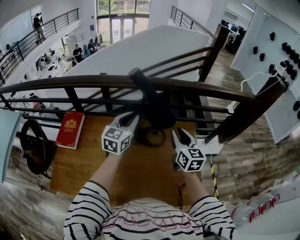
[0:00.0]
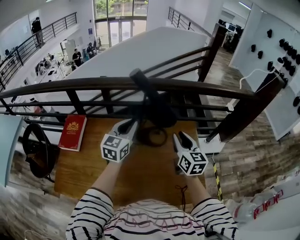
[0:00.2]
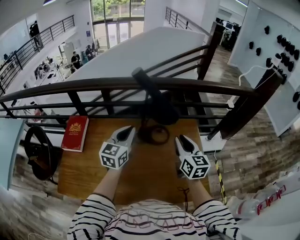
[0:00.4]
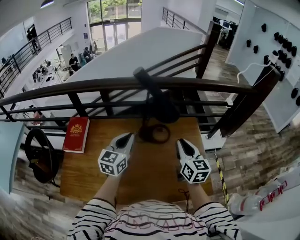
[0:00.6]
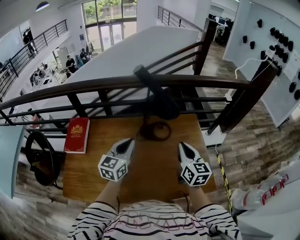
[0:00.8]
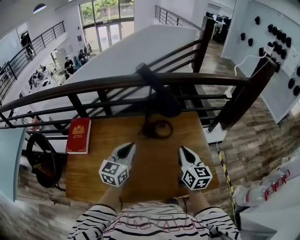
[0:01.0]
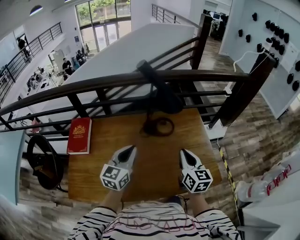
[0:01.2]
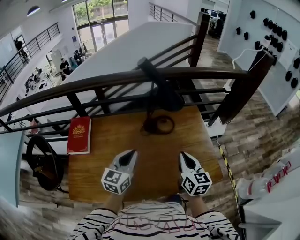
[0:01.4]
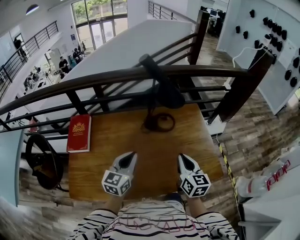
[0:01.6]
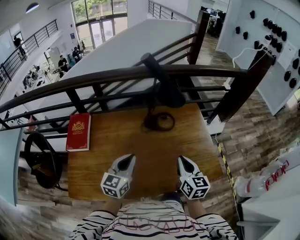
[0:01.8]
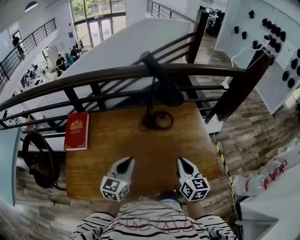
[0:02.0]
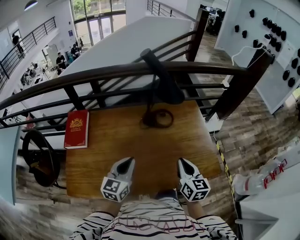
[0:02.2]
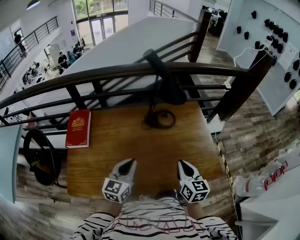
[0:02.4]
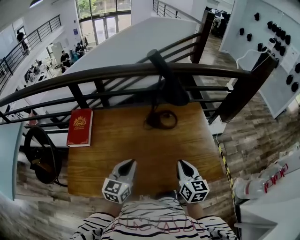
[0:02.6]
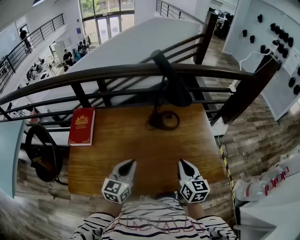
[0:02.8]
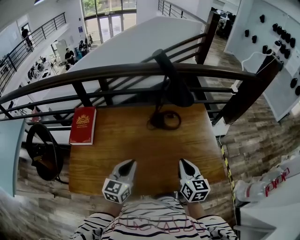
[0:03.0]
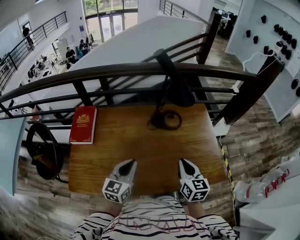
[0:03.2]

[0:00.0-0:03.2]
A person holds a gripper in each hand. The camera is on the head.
0:00.0 to 0:01.6: Both grippers move backward, some 25 cm. The right gripper closes up.
0:01.6 to 0:03.2: The left gripper moves approximately 5 cm.

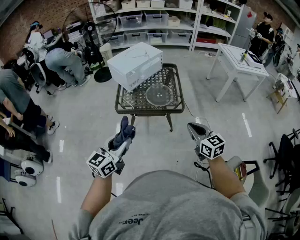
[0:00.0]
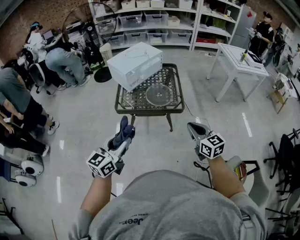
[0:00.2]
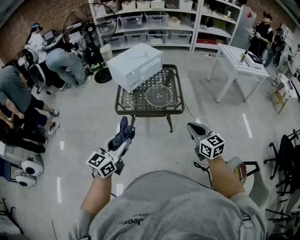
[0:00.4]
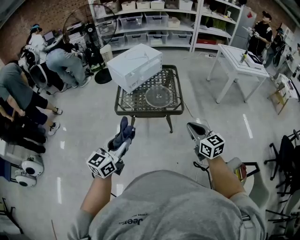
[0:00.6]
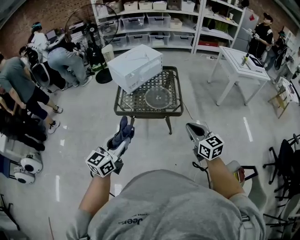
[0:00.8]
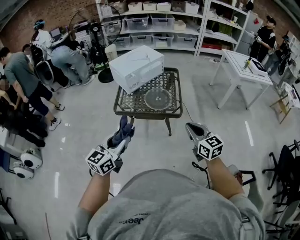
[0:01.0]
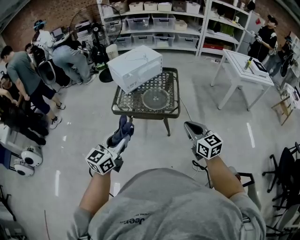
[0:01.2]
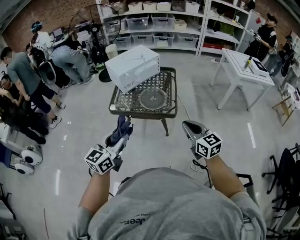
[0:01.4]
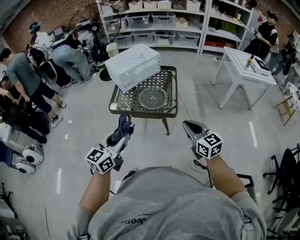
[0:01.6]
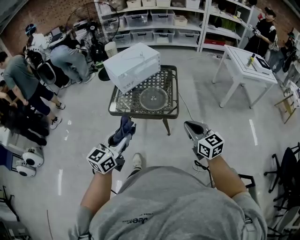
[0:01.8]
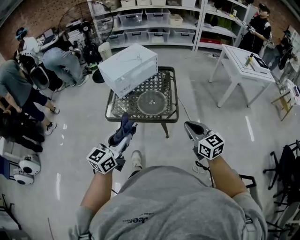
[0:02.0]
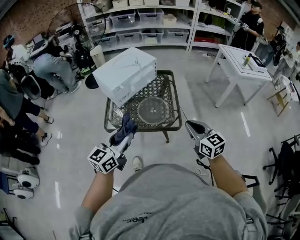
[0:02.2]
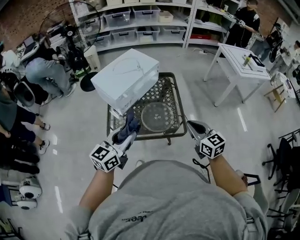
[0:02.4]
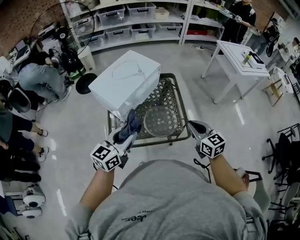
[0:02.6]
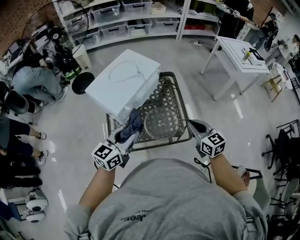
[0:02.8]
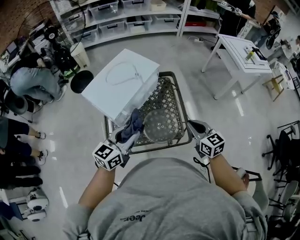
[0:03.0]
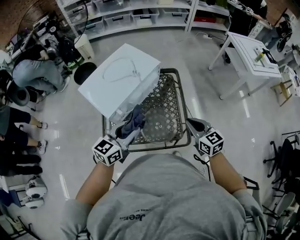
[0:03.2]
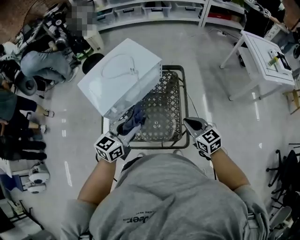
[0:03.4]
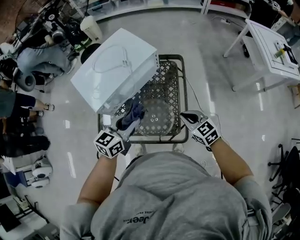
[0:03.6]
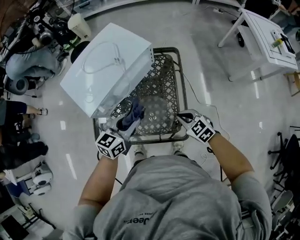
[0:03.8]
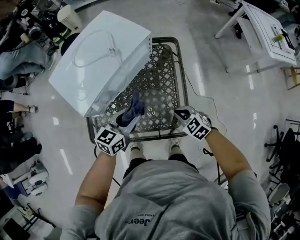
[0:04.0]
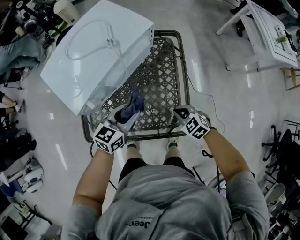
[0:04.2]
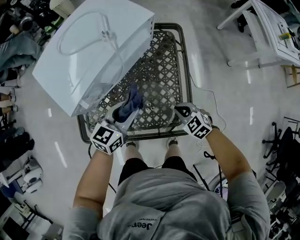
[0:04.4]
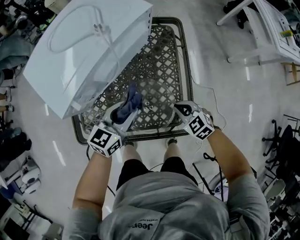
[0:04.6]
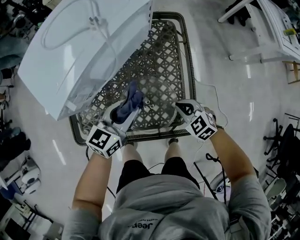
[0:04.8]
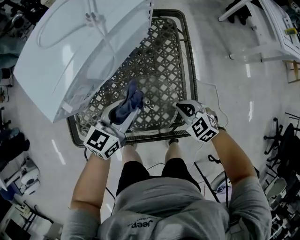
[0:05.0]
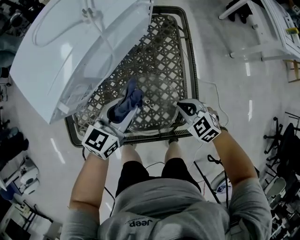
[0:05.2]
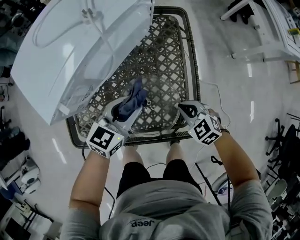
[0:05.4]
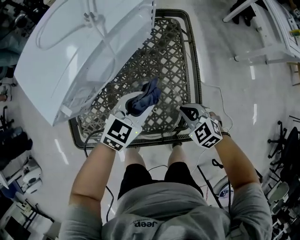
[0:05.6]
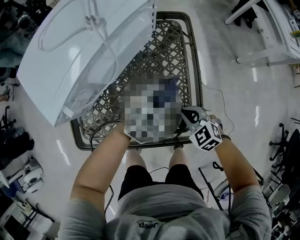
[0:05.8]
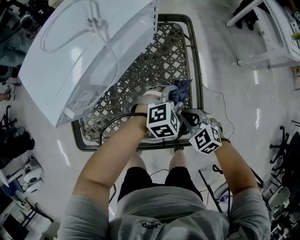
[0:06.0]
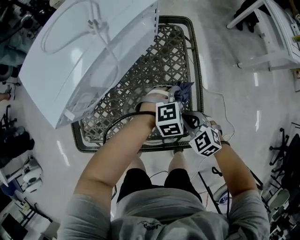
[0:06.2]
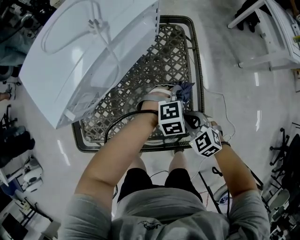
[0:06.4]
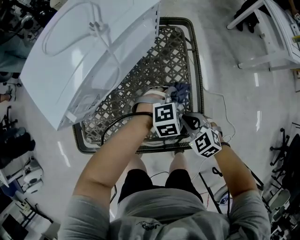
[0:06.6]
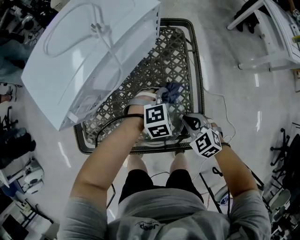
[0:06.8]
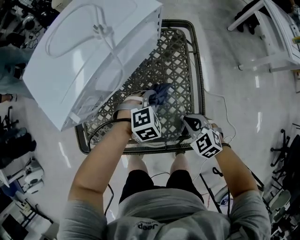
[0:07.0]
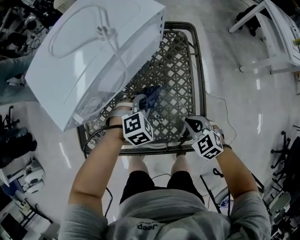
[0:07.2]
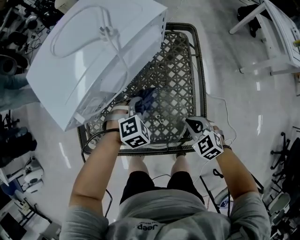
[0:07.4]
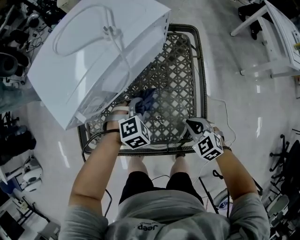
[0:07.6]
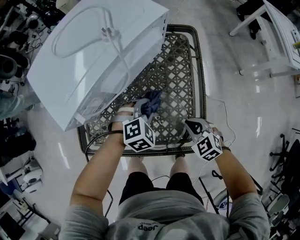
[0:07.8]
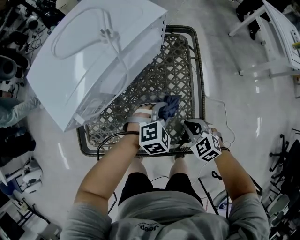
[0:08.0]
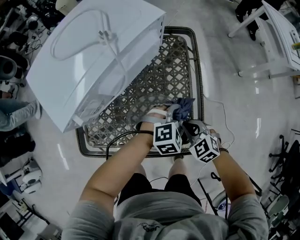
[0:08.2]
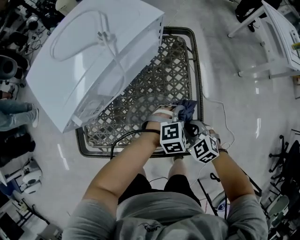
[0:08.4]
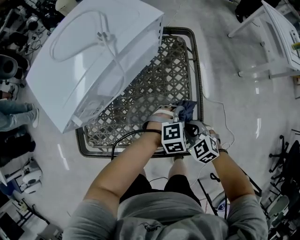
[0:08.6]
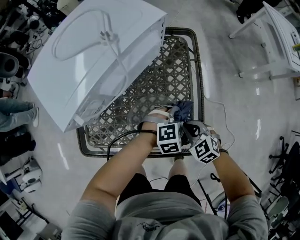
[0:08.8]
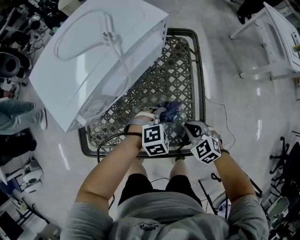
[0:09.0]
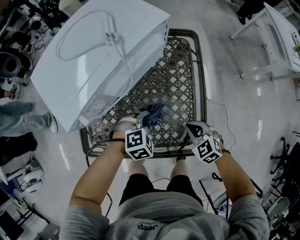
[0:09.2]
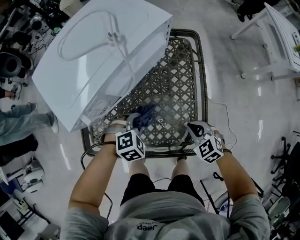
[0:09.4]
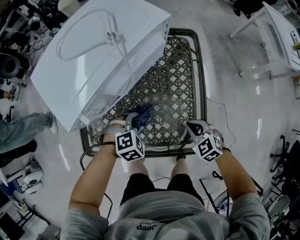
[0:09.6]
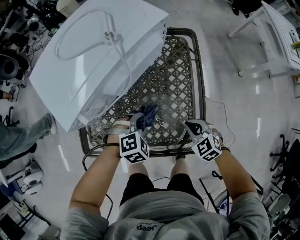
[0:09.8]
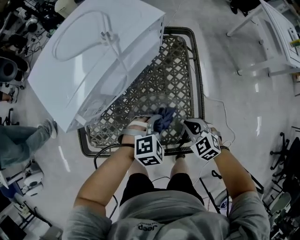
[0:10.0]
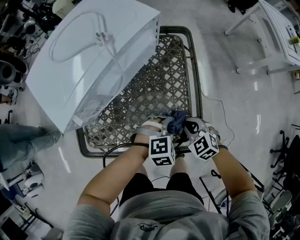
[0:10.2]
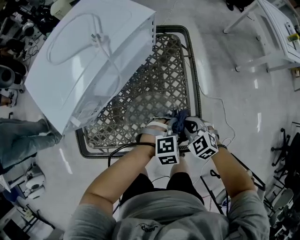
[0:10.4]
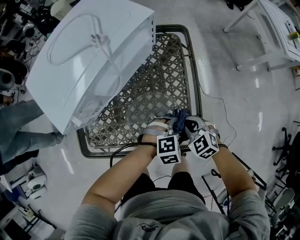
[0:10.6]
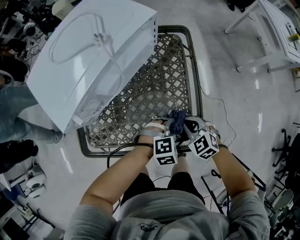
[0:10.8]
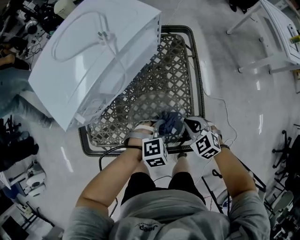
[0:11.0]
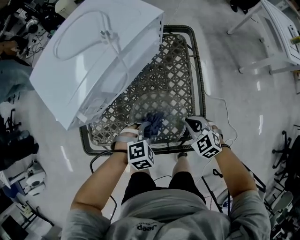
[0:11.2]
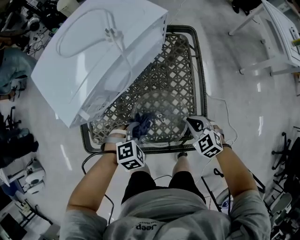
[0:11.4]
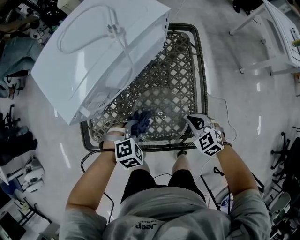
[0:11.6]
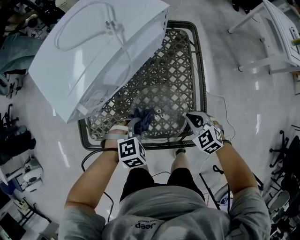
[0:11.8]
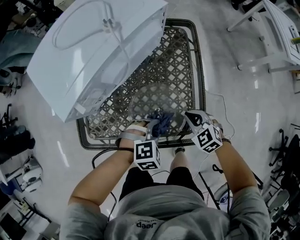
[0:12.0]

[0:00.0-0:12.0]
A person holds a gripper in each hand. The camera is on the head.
0:00.0 to 0:01.6: The grippers both shift to the right by approximately 10 cm.
0:01.6 to 0:03.0: Both grippers move forward, about 35 cm. The left gripper rotates about 20 degrees.
0:03.0 to 0:04.4: The right gripper is displaced downward by some 30 cm, and swivels about 50 degrees, while the left gripper heads downward and to the right, covering some 25 cm.
0:04.4 to 0:06.0: The left gripper goes approximately 20 cm to the right and downward, and rotates around the line of its fingers by approximately 50 degrees, clockwise from behind.
0:06.0 to 0:07.6: The left gripper heads to the left, covering roughly 15 cm, and turns by roughly 20 degrees.
0:07.6 to 0:09.0: The left gripper travels to the right by approximately 10 cm.
0:09.0 to 0:10.4: The left gripper travels backward by about 5 cm, and goes to the left and returns, roughly 10 cm each way.
0:10.4 to 0:12.0: The left gripper moves to the left, roughly 10 cm.

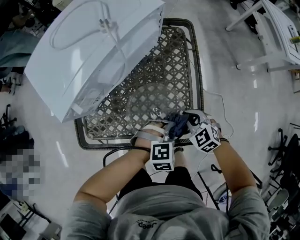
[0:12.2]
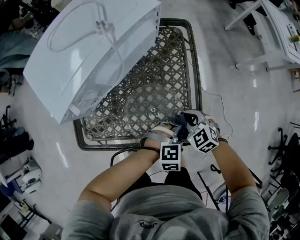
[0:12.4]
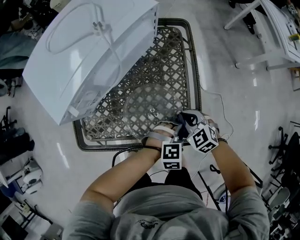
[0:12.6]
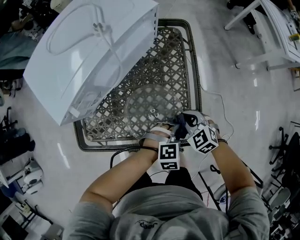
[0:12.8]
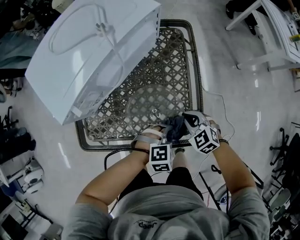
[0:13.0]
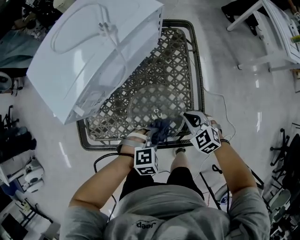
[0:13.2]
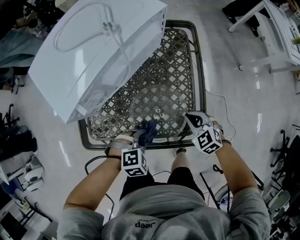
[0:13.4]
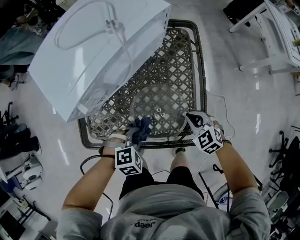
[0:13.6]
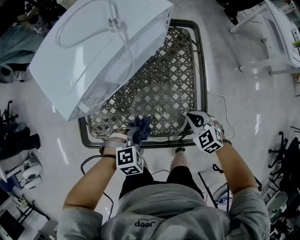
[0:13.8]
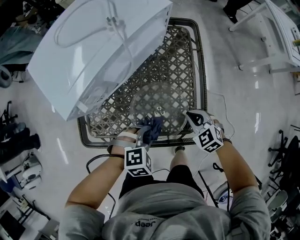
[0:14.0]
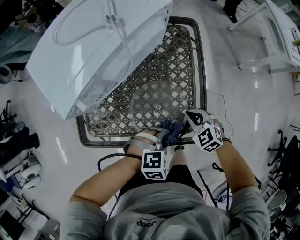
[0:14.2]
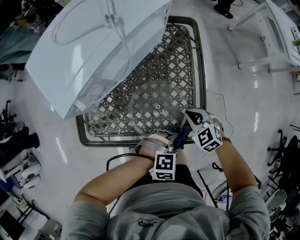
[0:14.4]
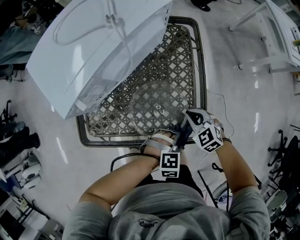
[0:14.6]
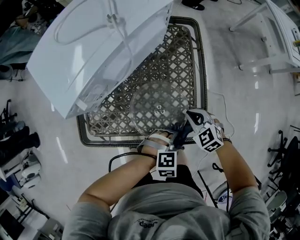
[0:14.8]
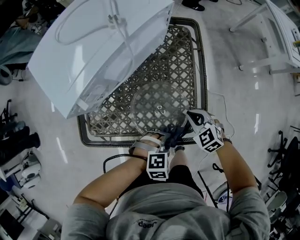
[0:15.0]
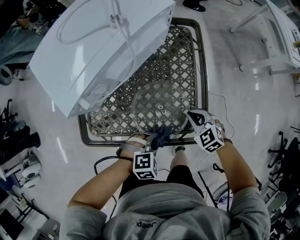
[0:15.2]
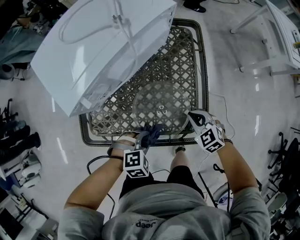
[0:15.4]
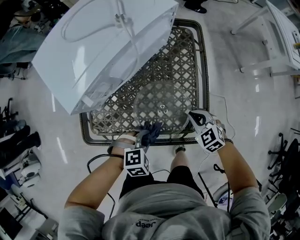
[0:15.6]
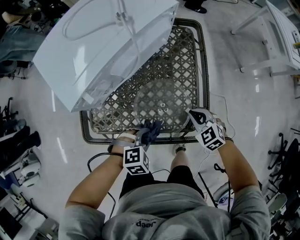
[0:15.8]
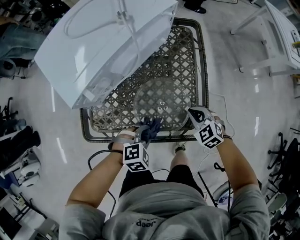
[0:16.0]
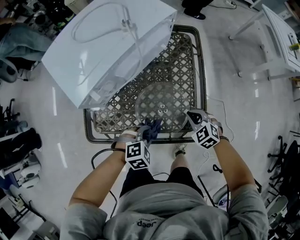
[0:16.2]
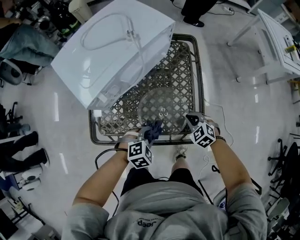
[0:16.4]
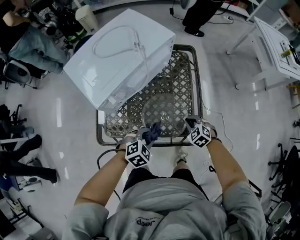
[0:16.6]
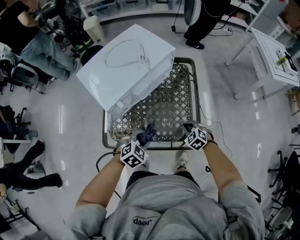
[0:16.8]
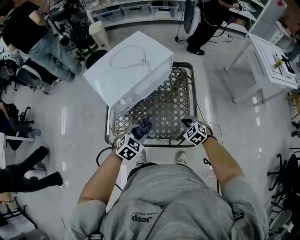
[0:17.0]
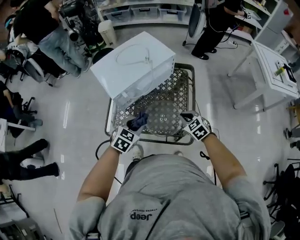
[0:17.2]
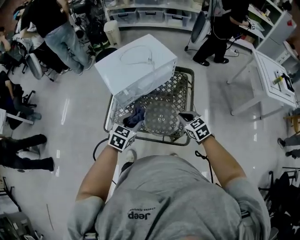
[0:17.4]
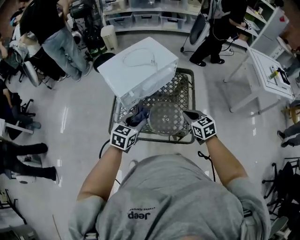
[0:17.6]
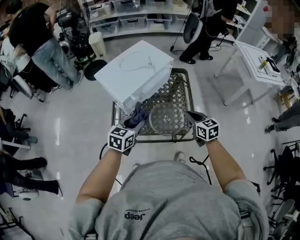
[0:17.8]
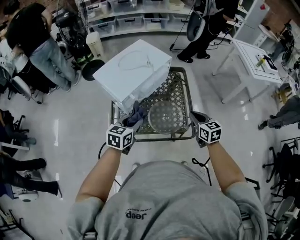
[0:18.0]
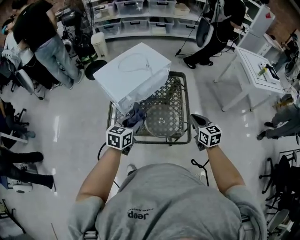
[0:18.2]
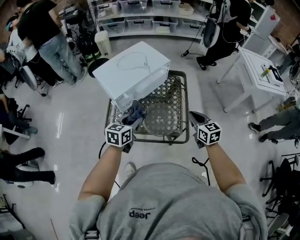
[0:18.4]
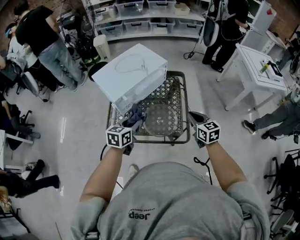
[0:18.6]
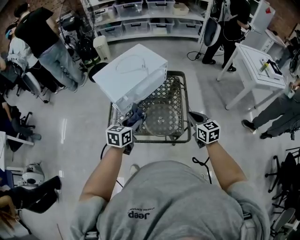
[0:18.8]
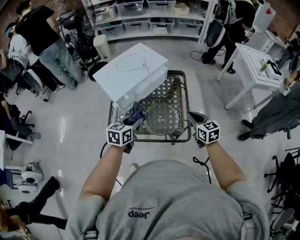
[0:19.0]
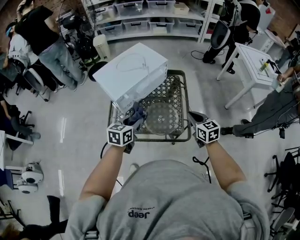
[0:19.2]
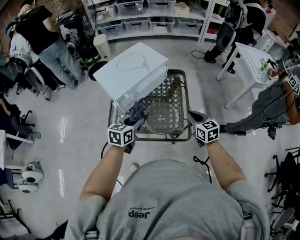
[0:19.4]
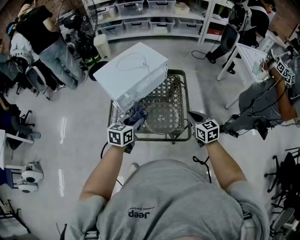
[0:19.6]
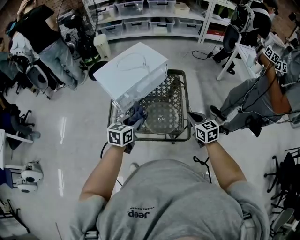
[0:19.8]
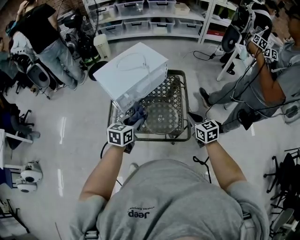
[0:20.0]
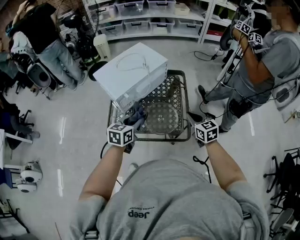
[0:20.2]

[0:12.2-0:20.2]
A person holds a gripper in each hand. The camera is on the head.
0:12.2 to 0:13.8: The left gripper heads to the left, covering approximately 15 cm.
0:13.8 to 0:15.4: The left gripper travels to the right and back again, about 20 cm each way.
0:15.4 to 0:17.0: The left gripper heads upward and forward, covering about 15 cm, and turns by some 40 degrees, while the right gripper heads upward, covering roughly 5 cm.
0:17.0 to 0:18.6: The right gripper shifts roughly 20 cm upward, and swivels approximately 50 degrees. The left gripper is displaced upward by about 10 cm, and rotates approximately 40 degrees.
0:18.6 to 0:20.2: The grippers make only small movements.
